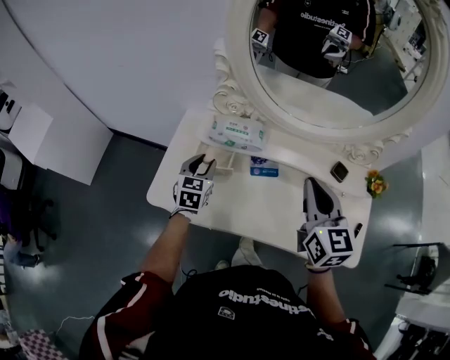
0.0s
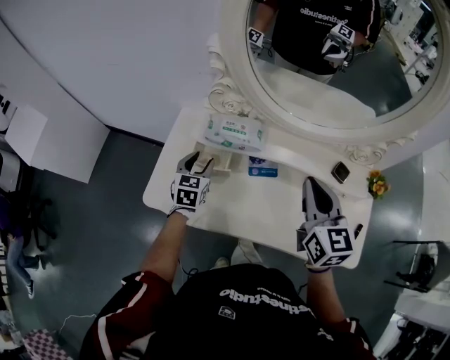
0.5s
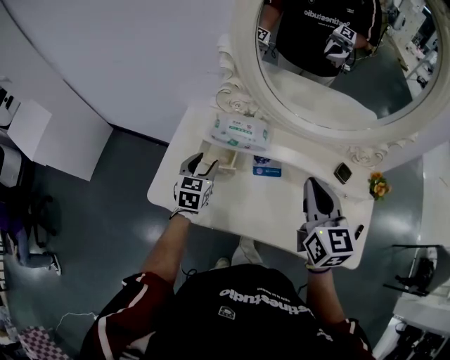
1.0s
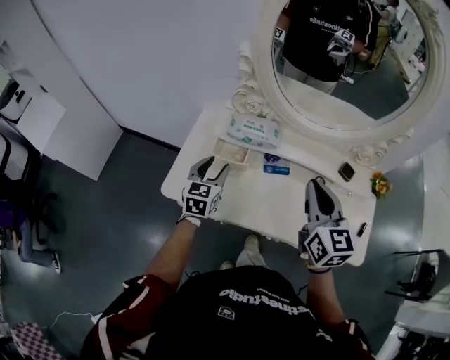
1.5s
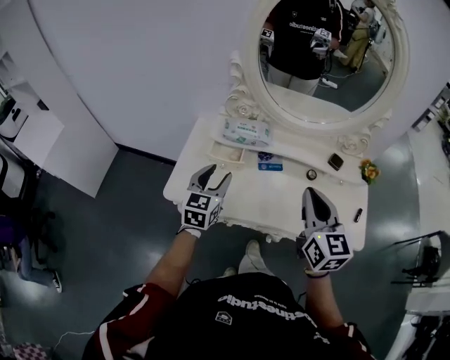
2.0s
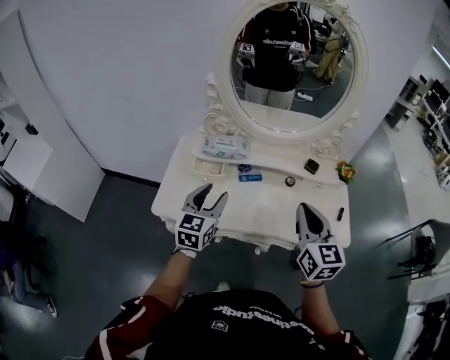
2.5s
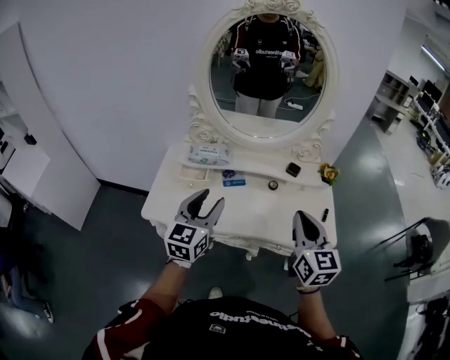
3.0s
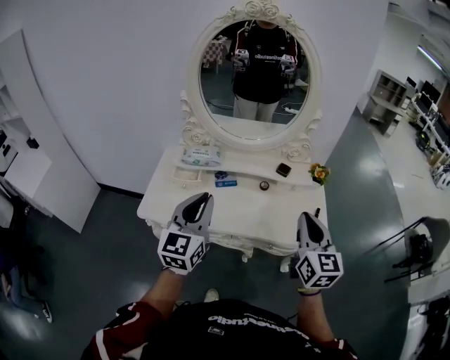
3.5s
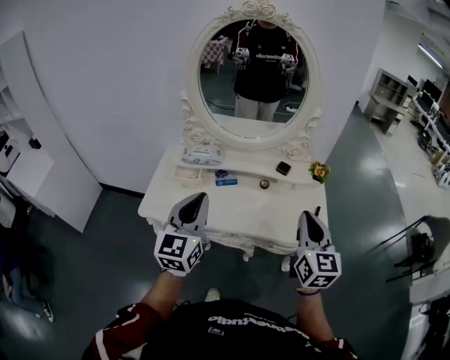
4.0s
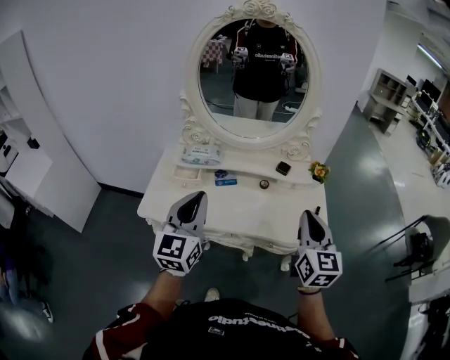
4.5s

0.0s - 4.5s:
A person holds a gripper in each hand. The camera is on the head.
0.0s - 2.0s: The right gripper is displaced backward by some 10 cm; the left gripper goes about 15 cm backward and upward.
2.0s - 4.5s: The left gripper heads upward, backward and to the right, covering about 25 cm, swivels about 20 degrees, and closes. The right gripper goes about 20 cm to the right and backward.

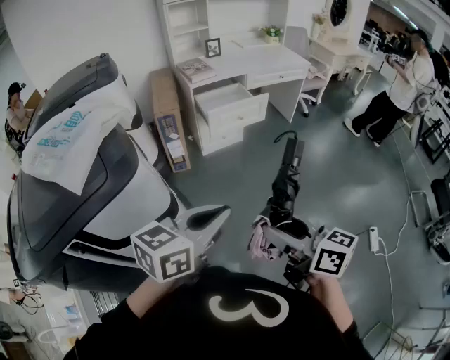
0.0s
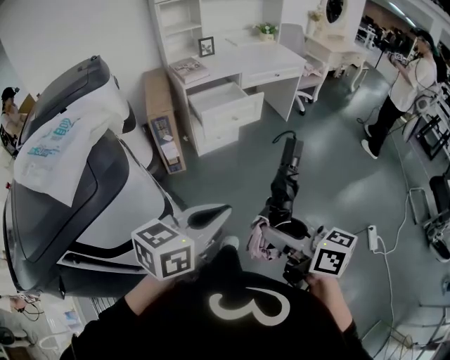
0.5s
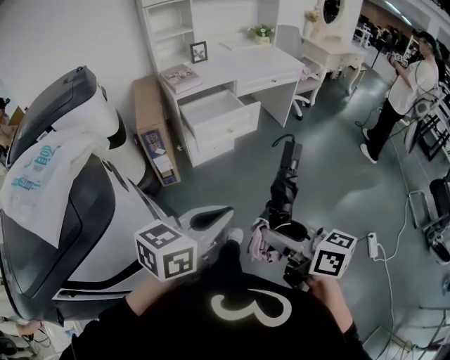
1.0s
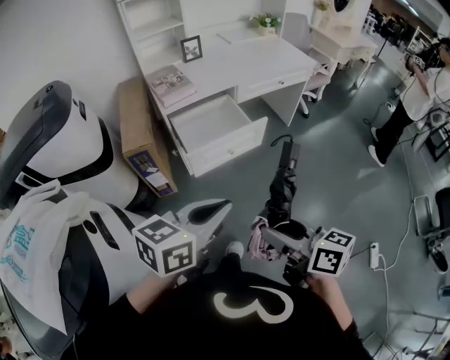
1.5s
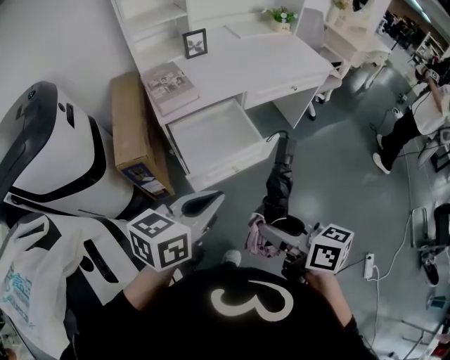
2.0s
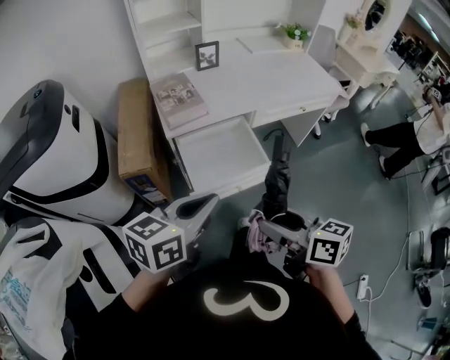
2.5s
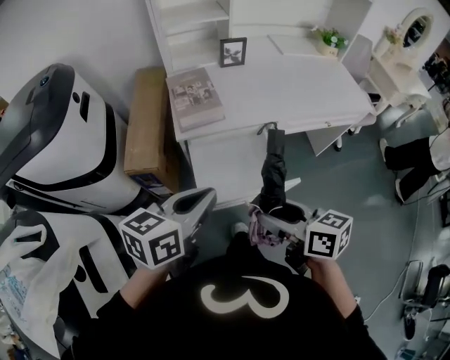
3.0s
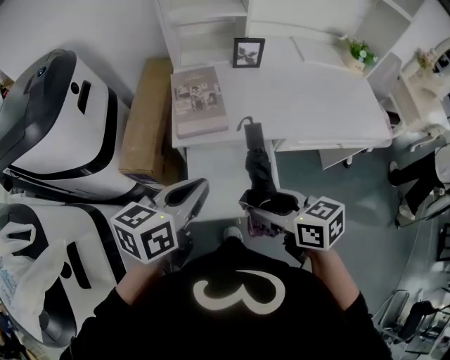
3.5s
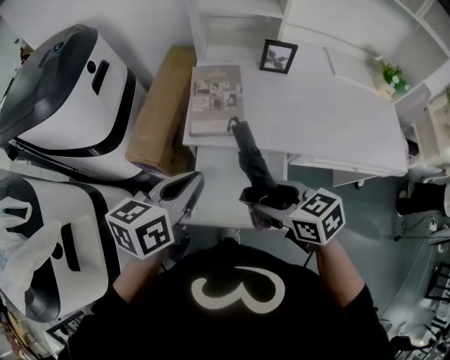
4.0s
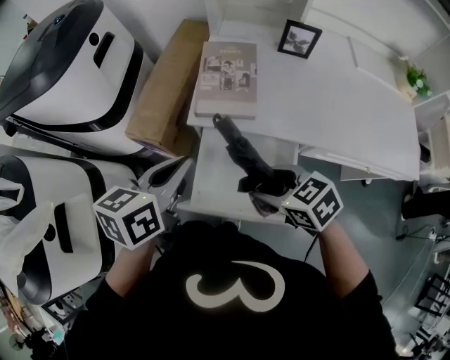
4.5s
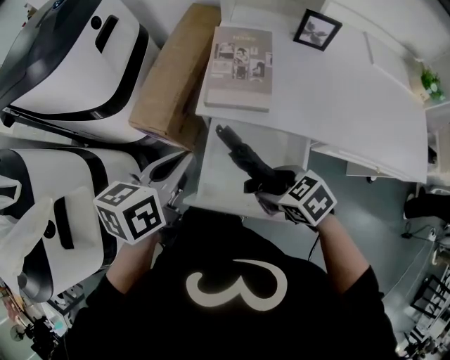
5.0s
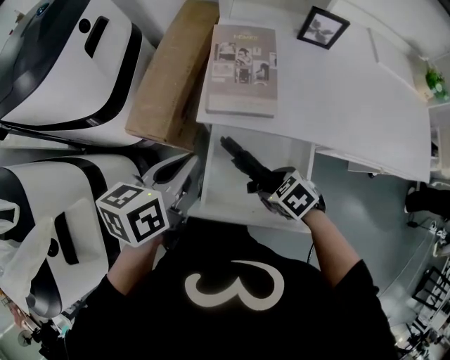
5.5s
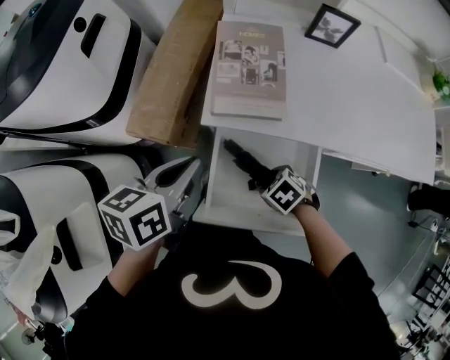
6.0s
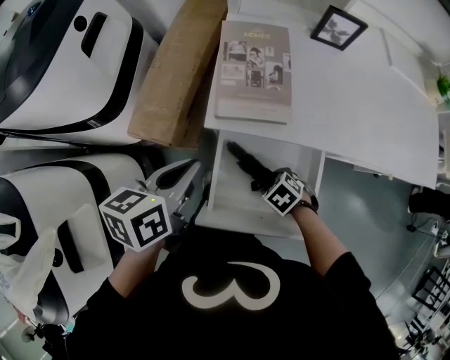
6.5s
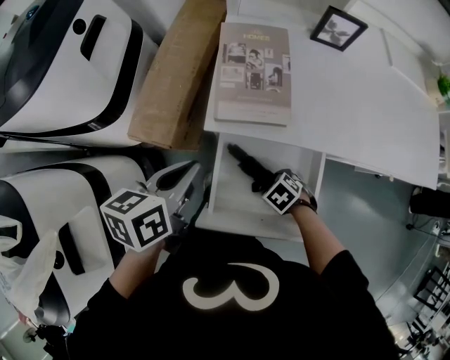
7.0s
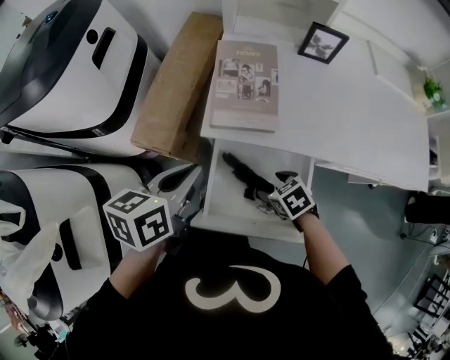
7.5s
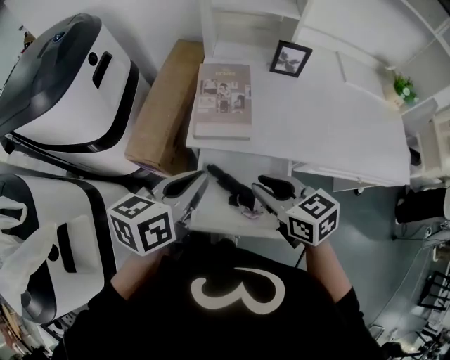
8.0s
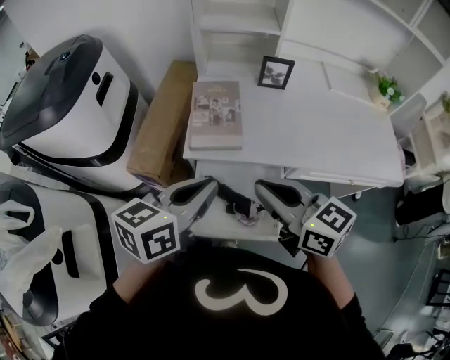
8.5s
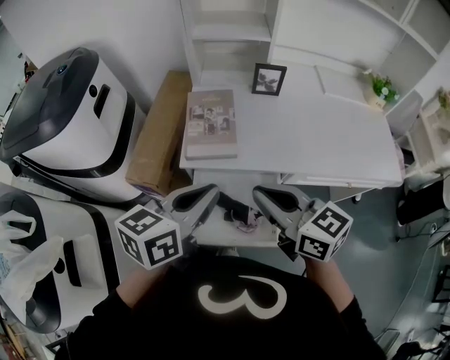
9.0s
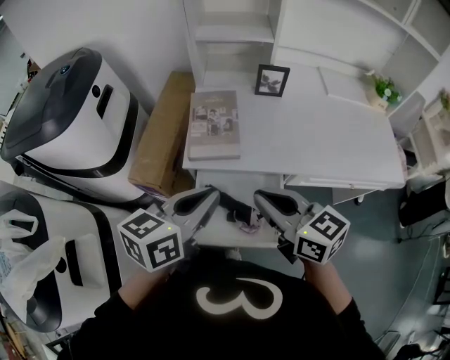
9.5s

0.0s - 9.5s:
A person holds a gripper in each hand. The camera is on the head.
0.0s - 2.0s: The pair of grippers is taken forward, approximately 50 cm.
2.0s - 4.0s: The left gripper shifts by some 30 cm, and swivels about 40 degrees, while the right gripper moves some 35 cm, and changes its angle by approximately 60 degrees.
4.0s - 5.5s: The right gripper shifts about 20 cm downward, and swivels about 30 degrees. The left gripper goes some 10 cm downward and forward.
5.5s - 7.5s: The right gripper goes downward and returns, roughly 10 cm each way.
7.5s - 9.5s: The right gripper moves upward, some 30 cm, angles its fingers upward, by some 50 degrees, and closes its fingers. Meanwhile the left gripper shifts some 15 cm upward, to the right and backward, and turns by about 20 degrees.

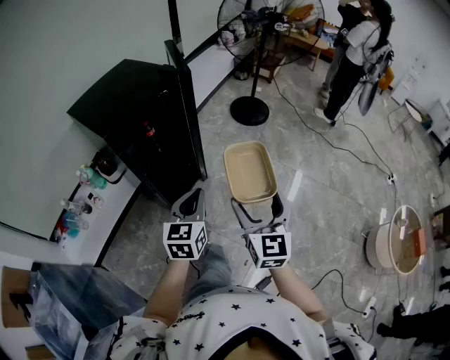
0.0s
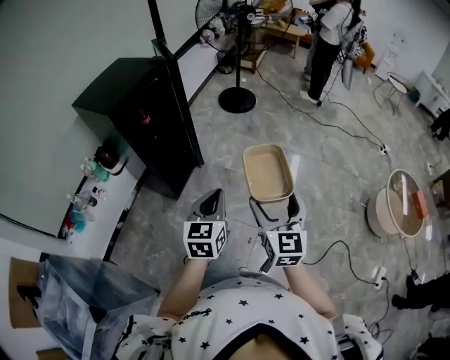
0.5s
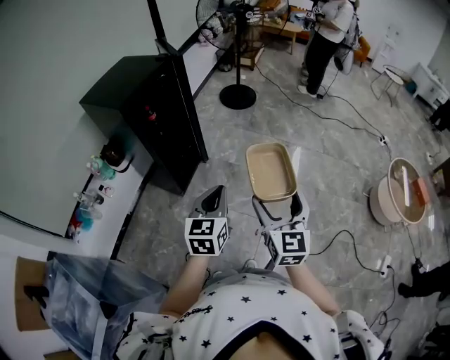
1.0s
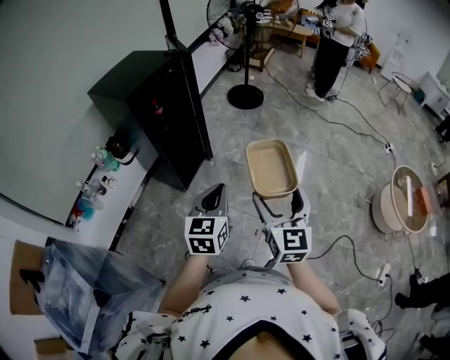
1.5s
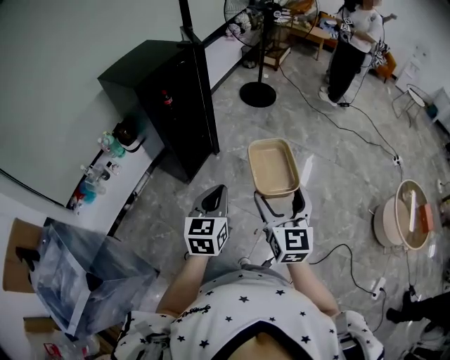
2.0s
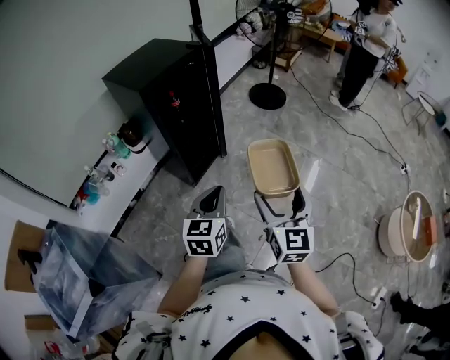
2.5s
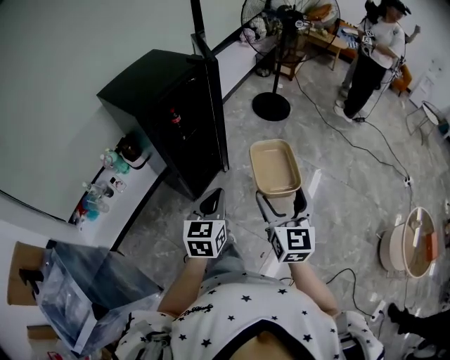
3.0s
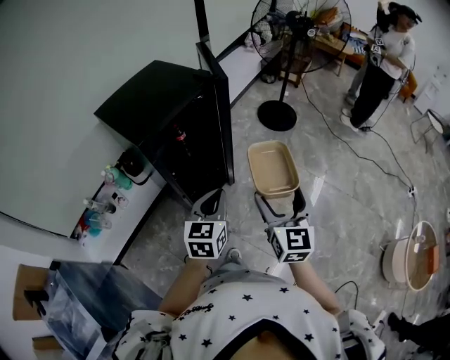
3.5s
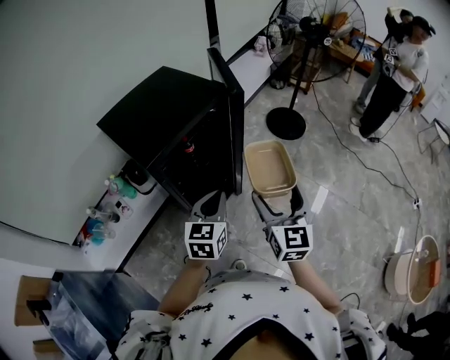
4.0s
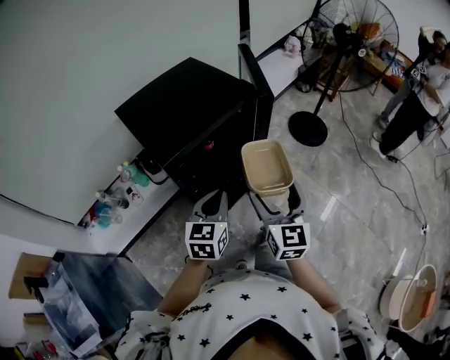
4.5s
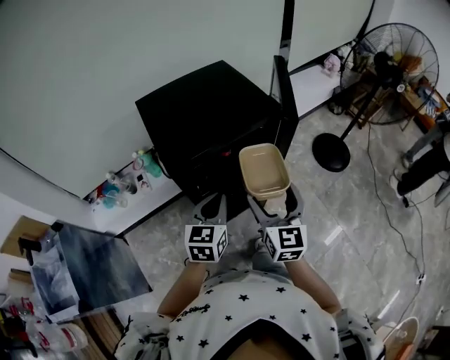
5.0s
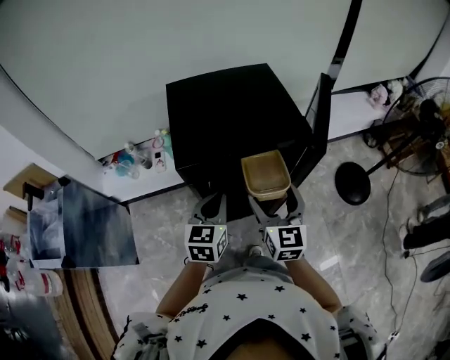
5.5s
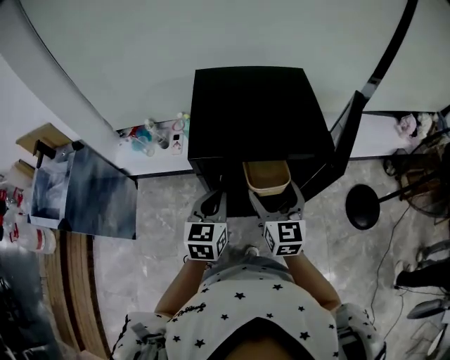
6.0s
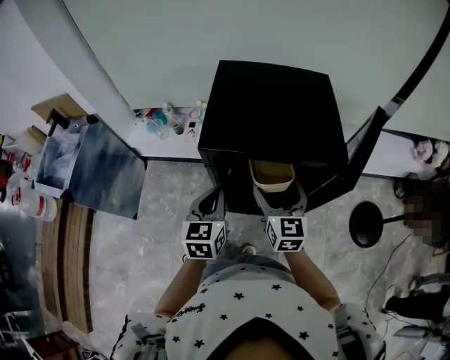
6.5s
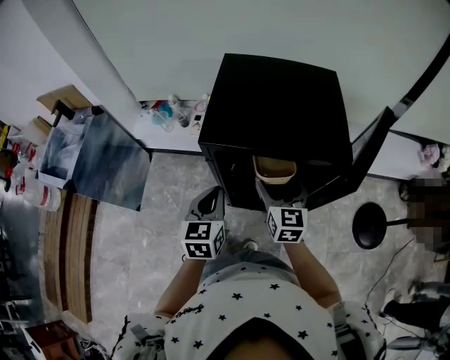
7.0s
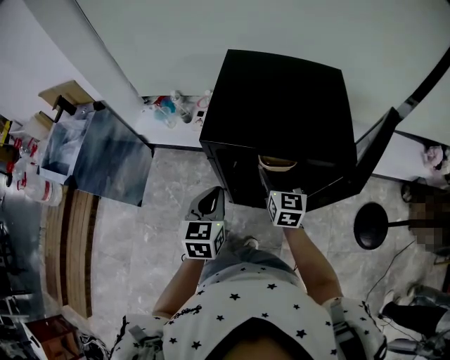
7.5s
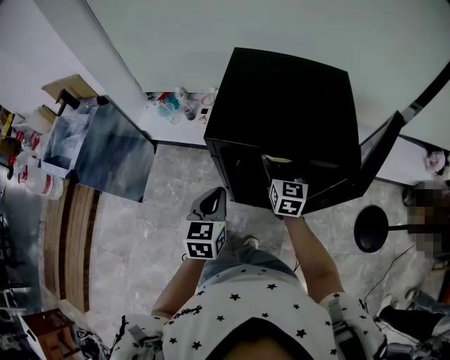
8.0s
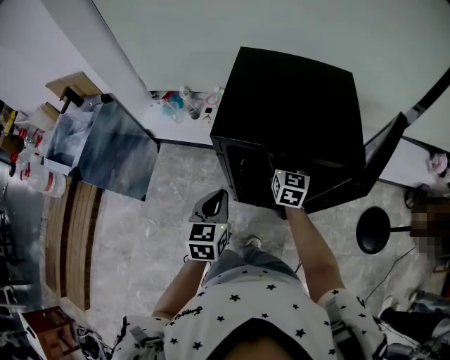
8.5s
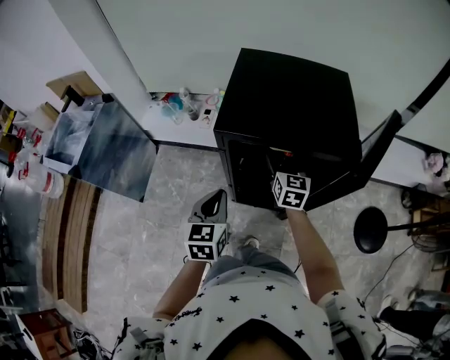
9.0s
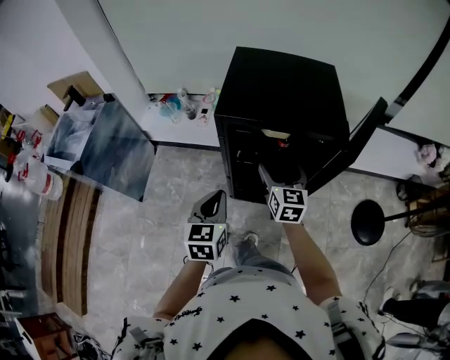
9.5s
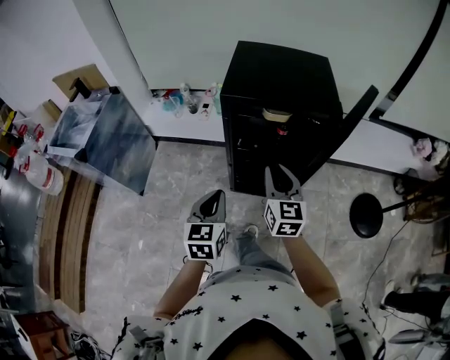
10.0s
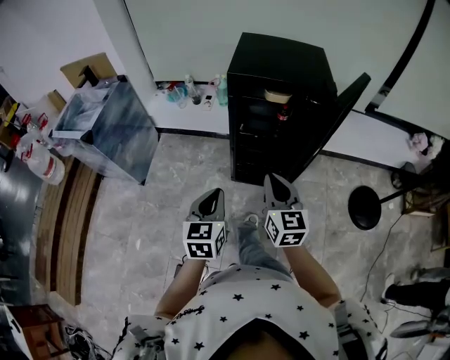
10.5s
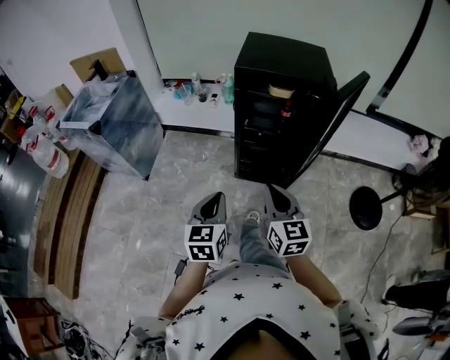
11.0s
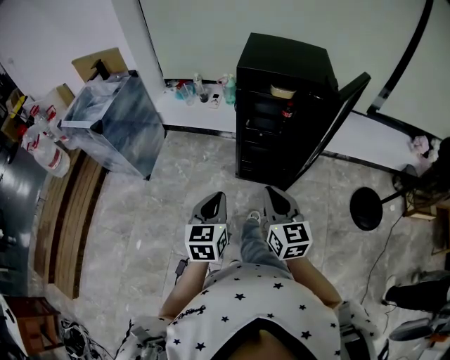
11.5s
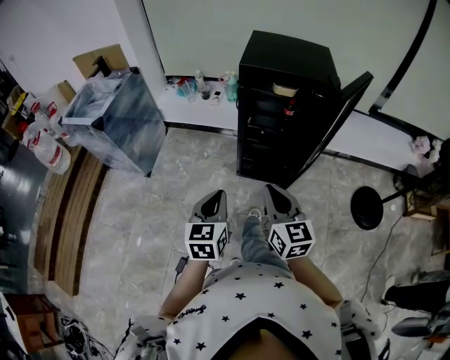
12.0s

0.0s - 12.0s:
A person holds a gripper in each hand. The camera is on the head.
0.0s - 2.0s: The two grippers go roughly 25 cm backward.
2.0s - 4.0s: The two grippers travel together, forward, roughly 40 cm.
4.0s - 6.0s: The right gripper changes place by some 25 cm, and swivels roughly 50 degrees. The left gripper shifts by some 15 cm, and changes its angle by approximately 50 degrees.
6.0s - 8.0s: The left gripper moves roughly 5 cm; the right gripper travels forward and downward by some 15 cm.
8.0s - 10.0s: The grippers both shift backward by roughly 20 cm. The right gripper closes up.
10.0s - 12.0s: Both grippers travel together backward, approximately 20 cm.

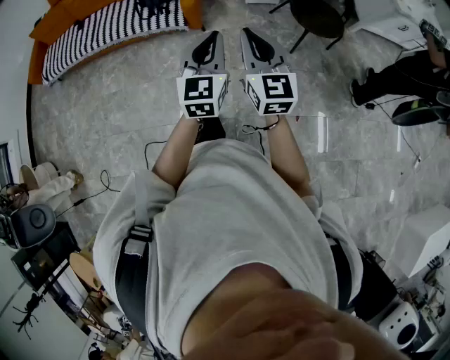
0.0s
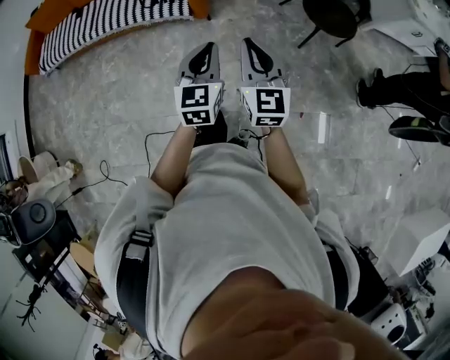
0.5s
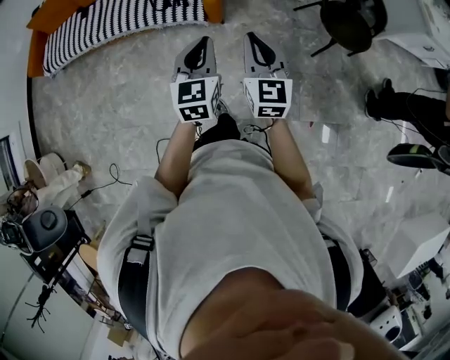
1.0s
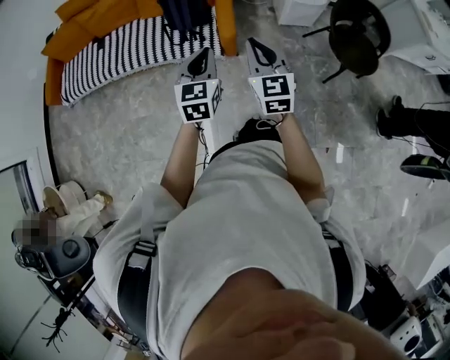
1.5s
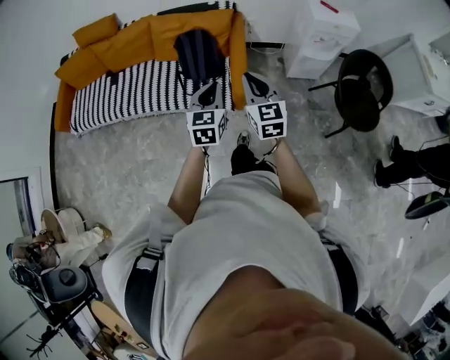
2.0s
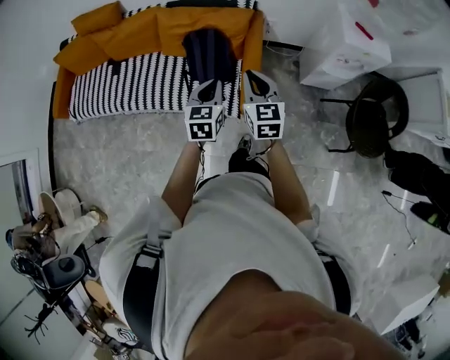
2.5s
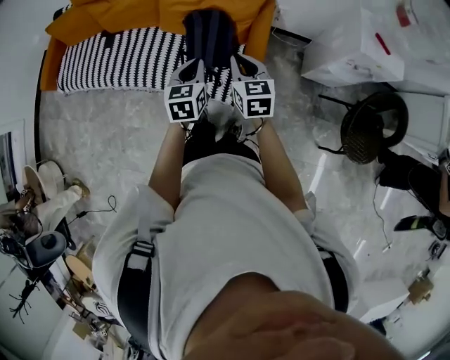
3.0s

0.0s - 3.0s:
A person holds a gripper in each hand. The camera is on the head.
0.0s - 1.5s: The two grippers go approximately 40 cm forward and to the left.
1.5s - 3.0s: The pair of grippers is taken forward, approximately 40 cm. The left gripper rotates about 20 degrees; the right gripper changes its angle by about 20 degrees.
